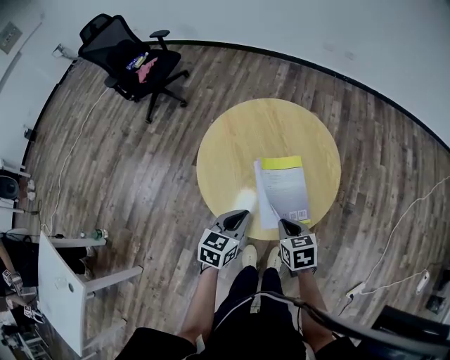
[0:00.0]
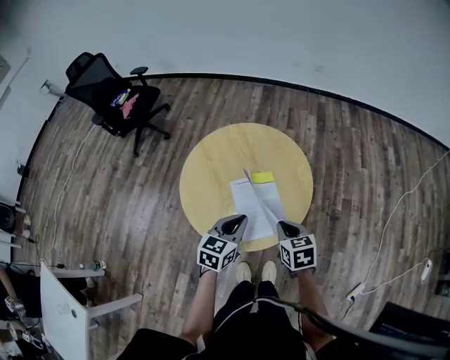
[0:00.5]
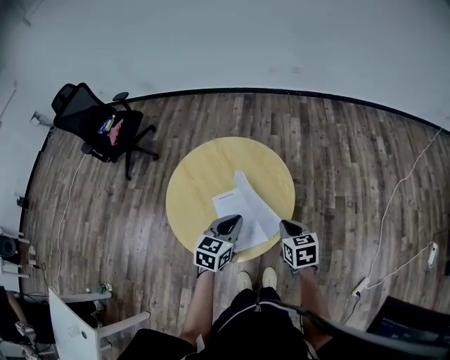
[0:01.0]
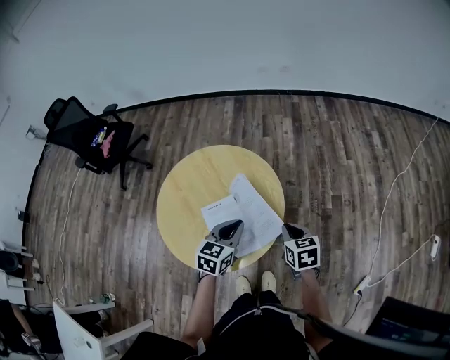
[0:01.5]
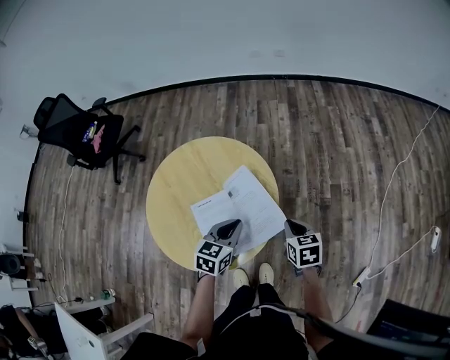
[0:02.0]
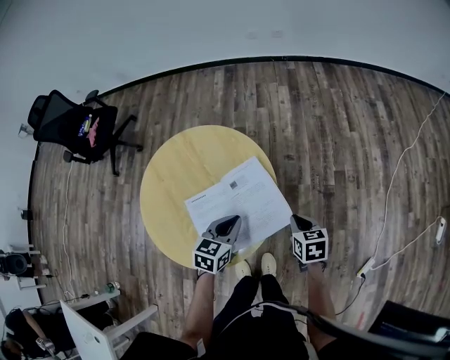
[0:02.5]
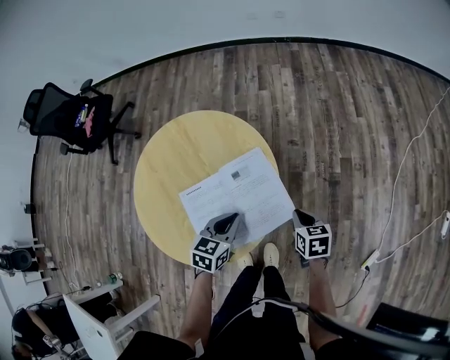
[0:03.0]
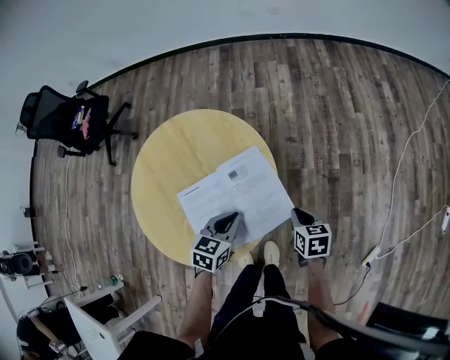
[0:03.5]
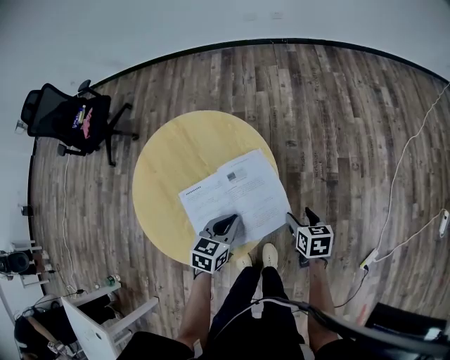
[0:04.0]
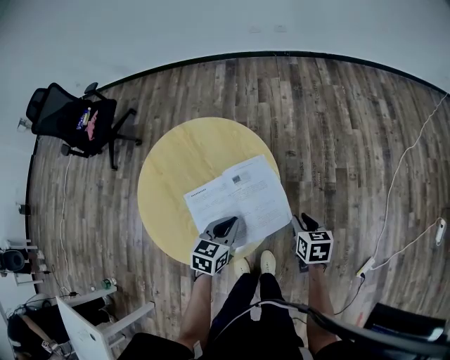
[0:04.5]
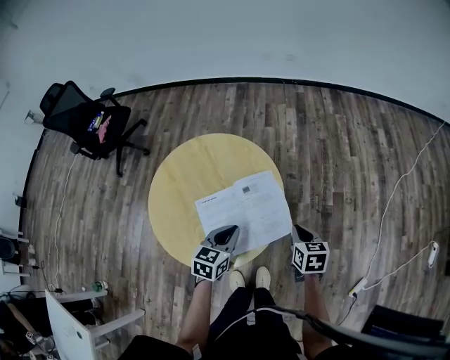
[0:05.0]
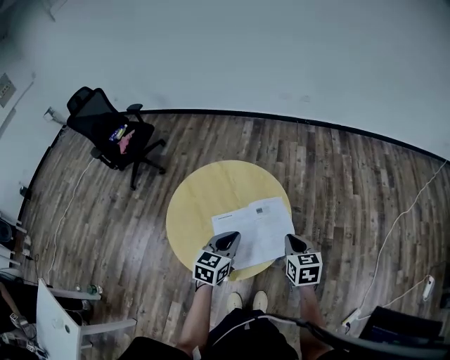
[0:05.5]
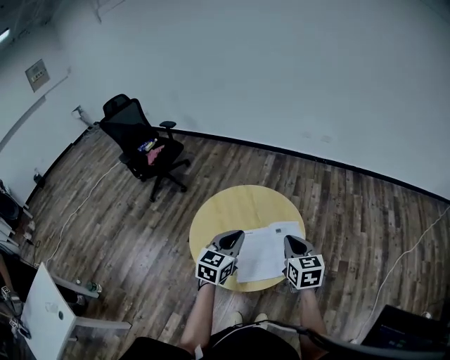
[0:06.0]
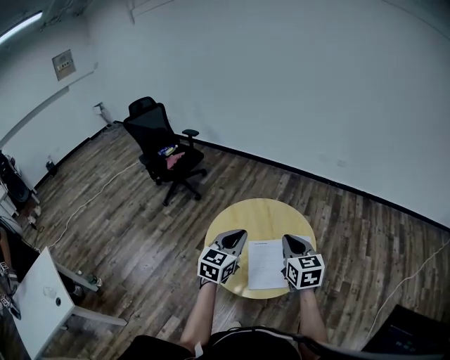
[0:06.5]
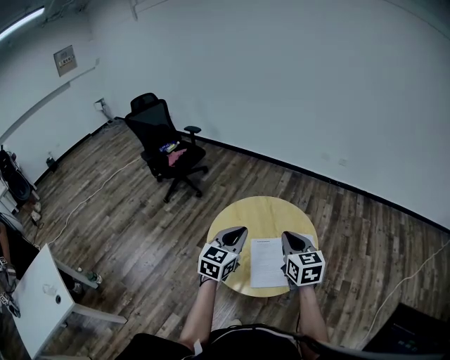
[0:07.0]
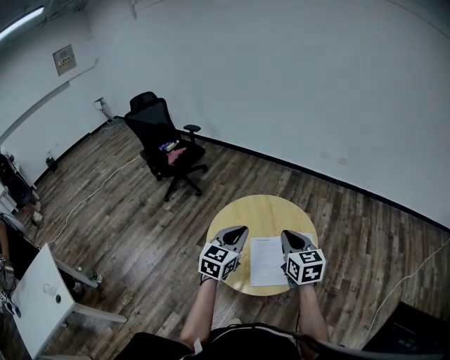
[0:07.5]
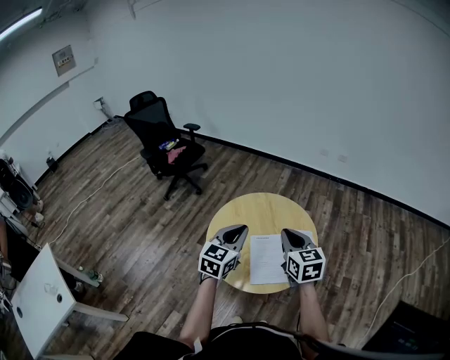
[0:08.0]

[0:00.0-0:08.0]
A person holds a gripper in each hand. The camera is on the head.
0:00.0 to 0:02.0: The grippers both shift to the right and forward by approximately 25 cm. The right gripper turns by about 20 degrees.
0:02.0 to 0:04.0: The grippers both shift downward by roughly 10 cm. The right gripper opens its fingers.
0:04.0 to 0:06.0: Both grippers move upward and to the left, roughly 30 cm. The right gripper turns by roughly 40 degrees, and closes up. The left gripper turns by approximately 30 degrees.
0:06.0 to 0:08.0: The left gripper shifts about 5 cm to the left, while the right gripper moves to the left and upward, about 10 cm.

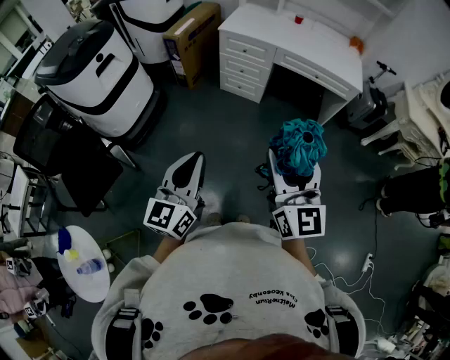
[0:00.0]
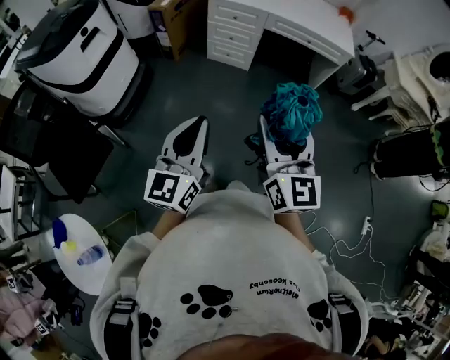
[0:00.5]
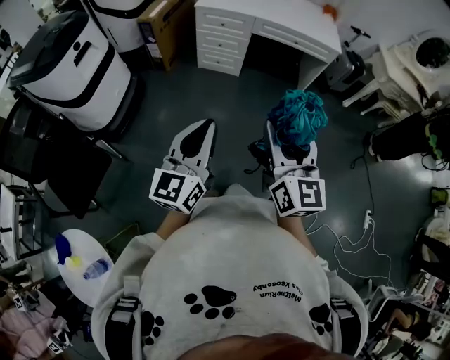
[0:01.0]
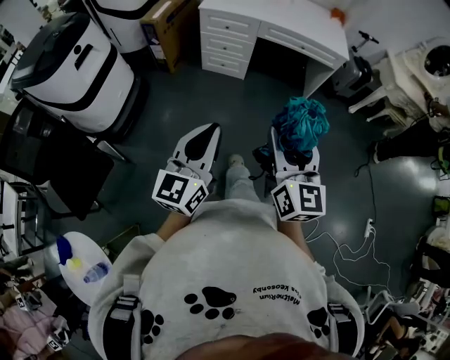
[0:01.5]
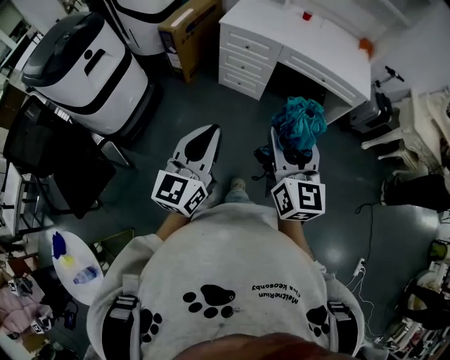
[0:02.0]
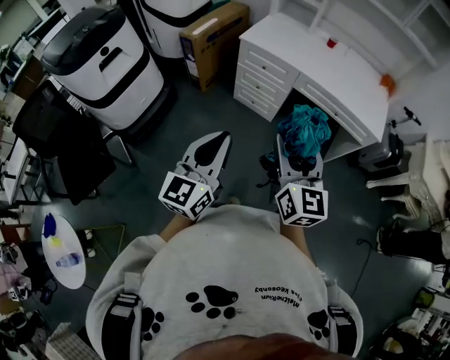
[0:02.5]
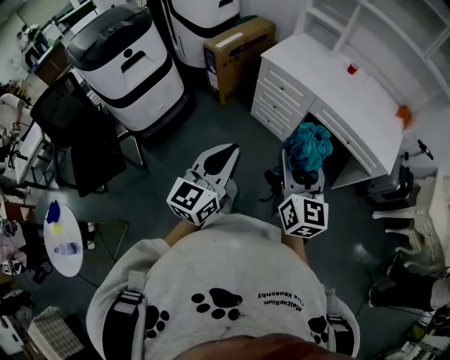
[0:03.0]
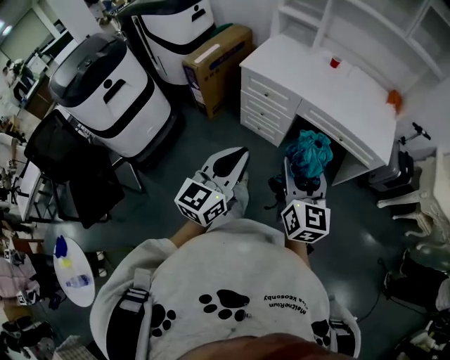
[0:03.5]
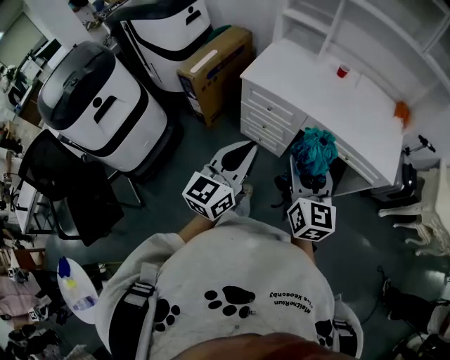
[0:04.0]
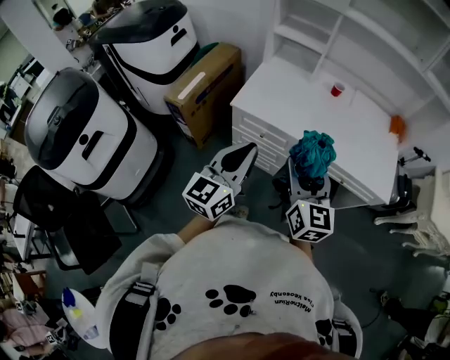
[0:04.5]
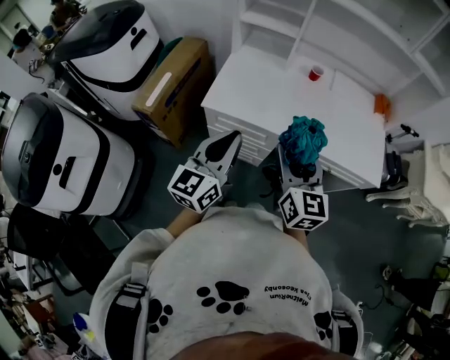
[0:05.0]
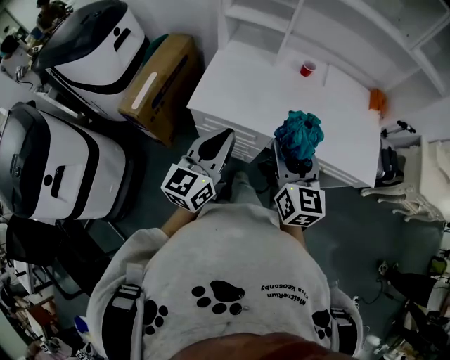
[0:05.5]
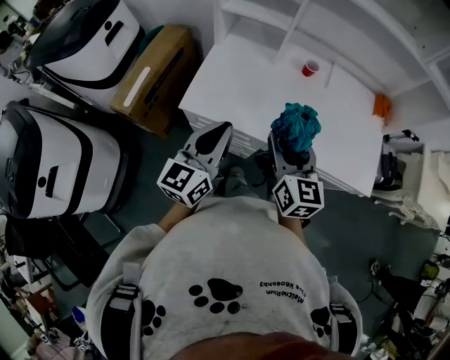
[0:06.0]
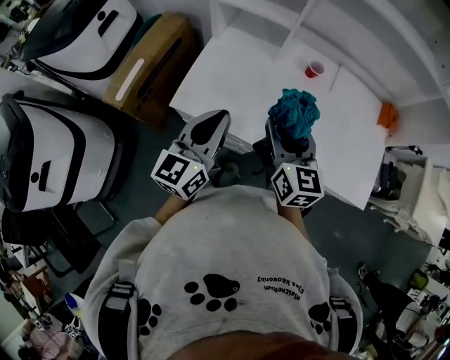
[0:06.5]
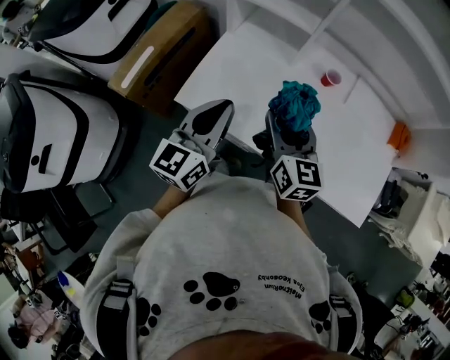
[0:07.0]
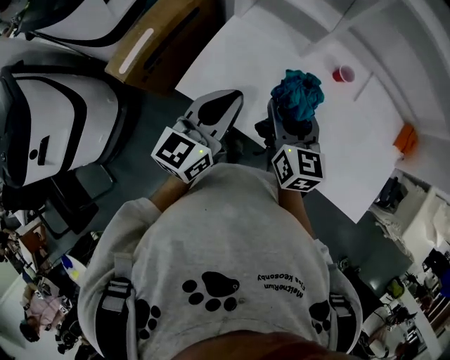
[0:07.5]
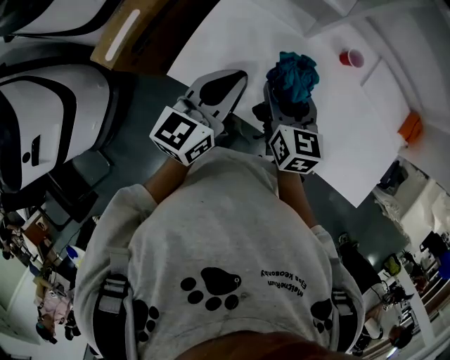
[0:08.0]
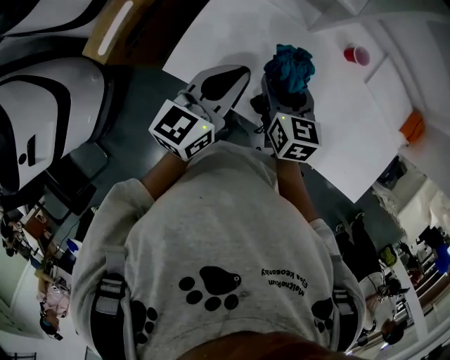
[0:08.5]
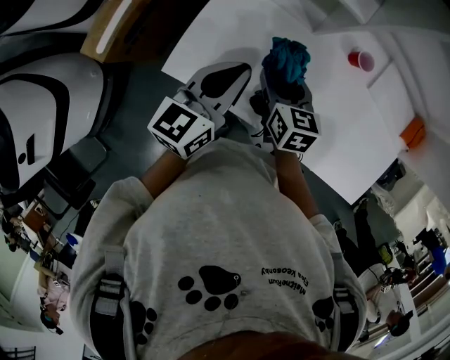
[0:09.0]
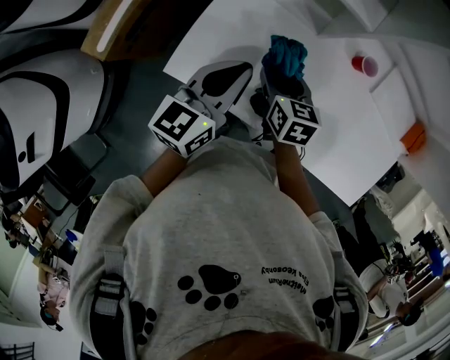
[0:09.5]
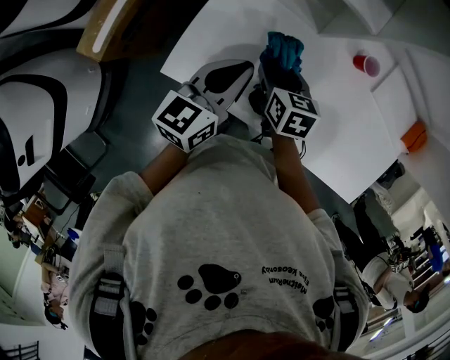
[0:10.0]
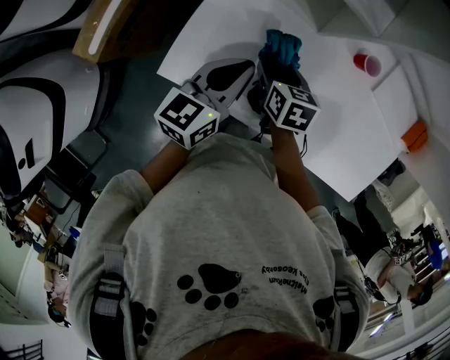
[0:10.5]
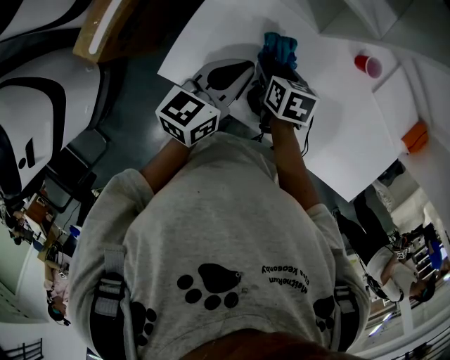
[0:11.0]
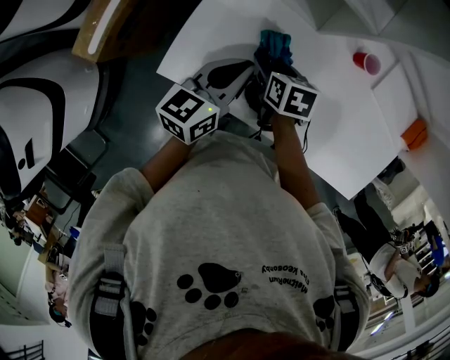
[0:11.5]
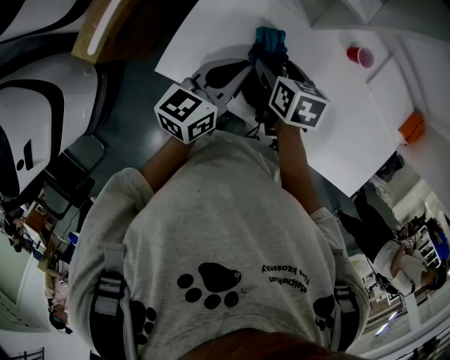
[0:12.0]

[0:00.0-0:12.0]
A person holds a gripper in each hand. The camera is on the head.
0:00.0 to 0:02.0: The grippers both shift forward by some 15 cm.
0:02.0 to 0:04.0: Both grippers travel together forward, roughly 40 cm.
0:04.0 to 0:06.0: Both grippers move forward, approximately 35 cm.
0:06.0 to 0:08.0: The right gripper heads forward and downward, covering roughly 30 cm, and rotates some 20 degrees. Meanwhile the left gripper moves forward, approximately 25 cm.
0:08.0 to 0:10.0: The two grippers go roughly 10 cm downward and forward. The right gripper swivels about 20 degrees.
0:10.0 to 0:12.0: There are only small adjustments of the grippers.

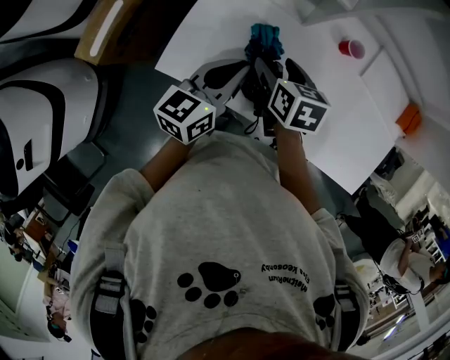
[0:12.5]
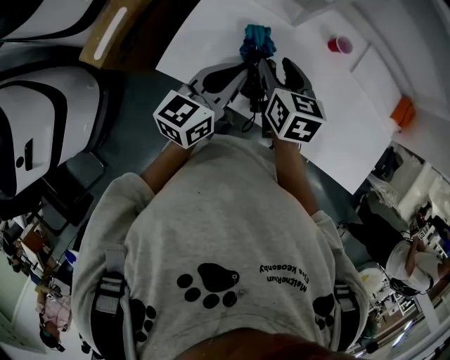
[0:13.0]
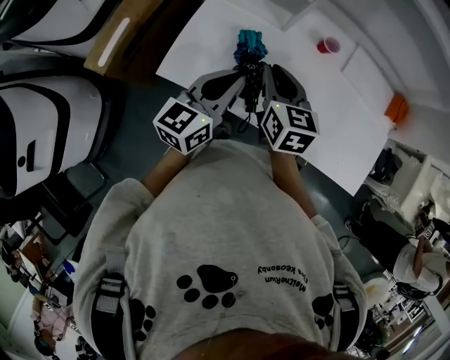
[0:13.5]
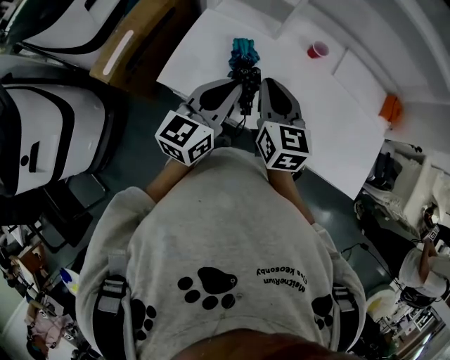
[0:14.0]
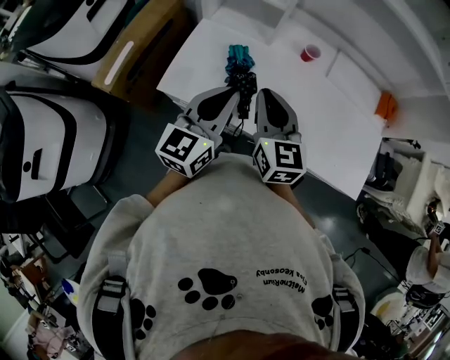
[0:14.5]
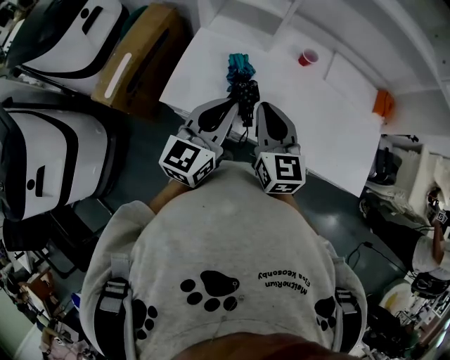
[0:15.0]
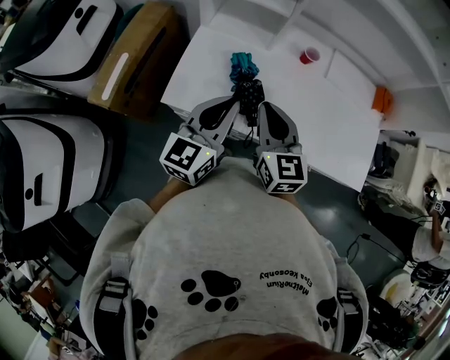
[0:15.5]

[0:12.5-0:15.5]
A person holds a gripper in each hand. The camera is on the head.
0:12.5 to 0:14.0: The left gripper travels backward, upward and to the right by some 15 cm, while the right gripper heads upward and backward, covering roughly 20 cm, rotates roughly 30 degrees, and closes its fingers.
0:14.0 to 0:15.5: The right gripper ends up some 5 cm from where it was.

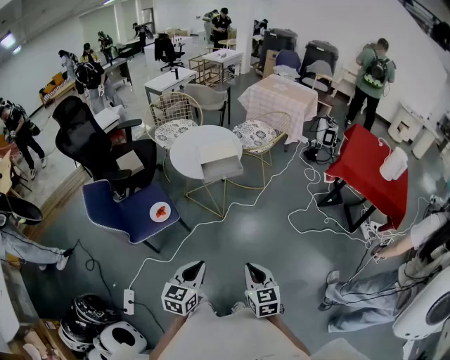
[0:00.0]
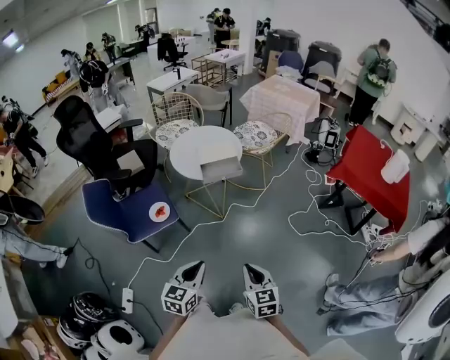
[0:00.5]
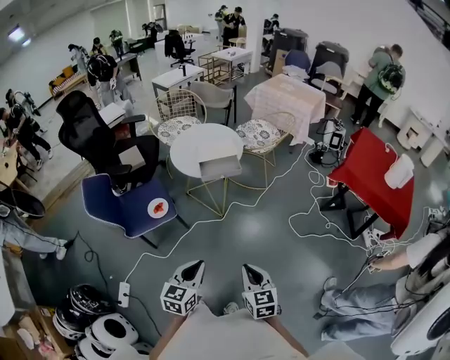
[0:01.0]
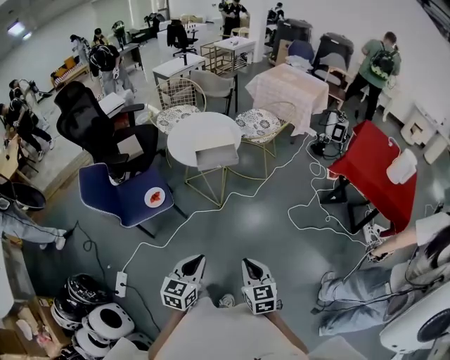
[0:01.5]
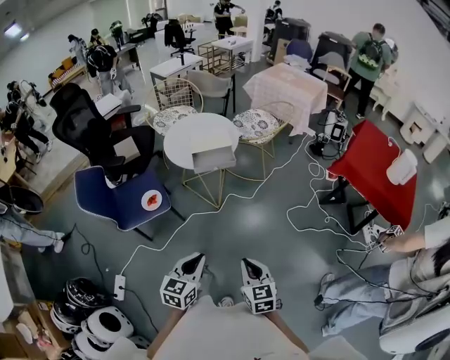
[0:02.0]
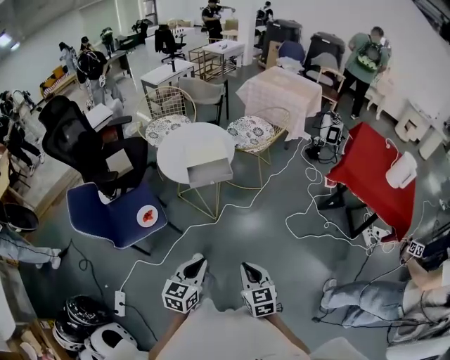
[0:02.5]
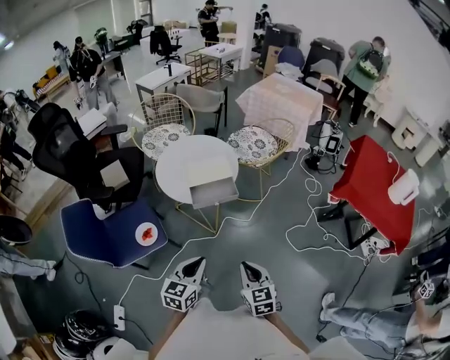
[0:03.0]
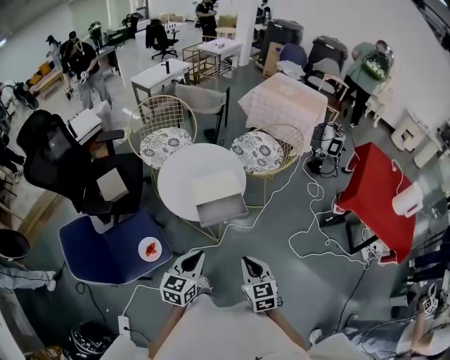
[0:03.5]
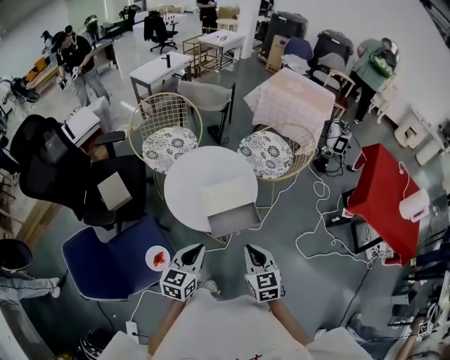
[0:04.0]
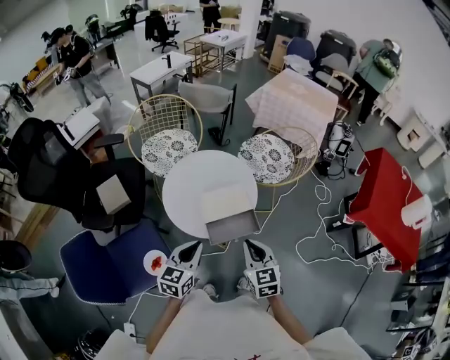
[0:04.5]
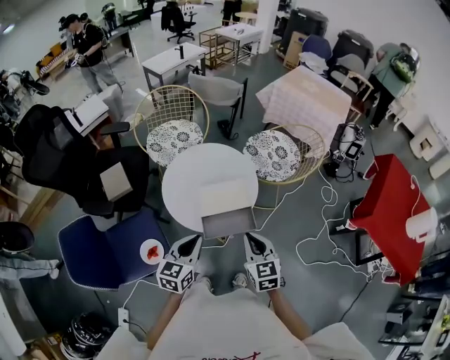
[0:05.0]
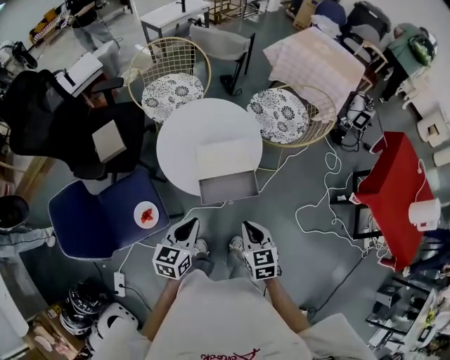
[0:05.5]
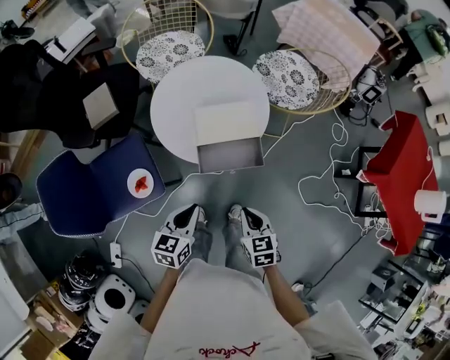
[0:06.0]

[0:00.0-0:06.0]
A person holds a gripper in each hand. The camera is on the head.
0:00.0 to 0:02.0: The two grippers go approximately 10 cm to the right.
0:02.0 to 0:04.0: The two grippers travel together, forward and to the left, some 40 cm.
0:04.0 to 0:06.0: The two grippers go some 15 cm downward. The right gripper turns by roughly 20 degrees.
